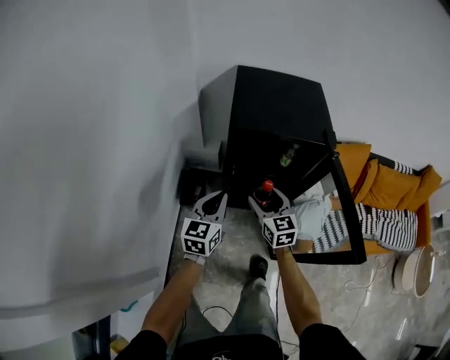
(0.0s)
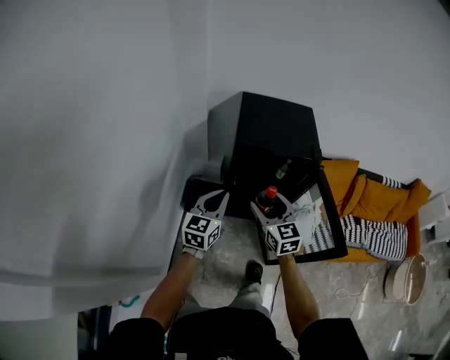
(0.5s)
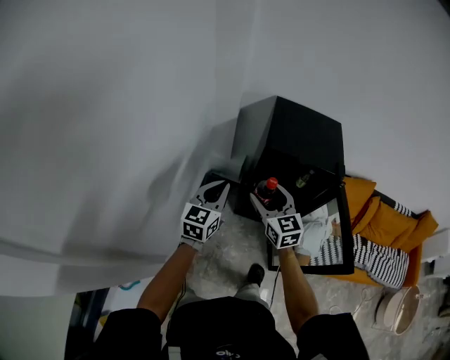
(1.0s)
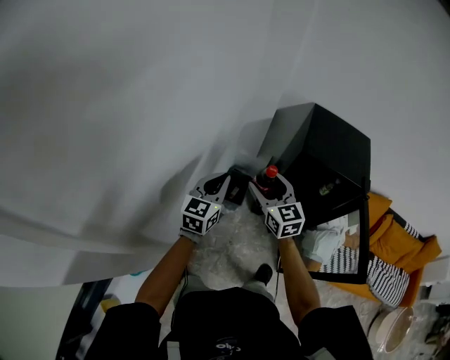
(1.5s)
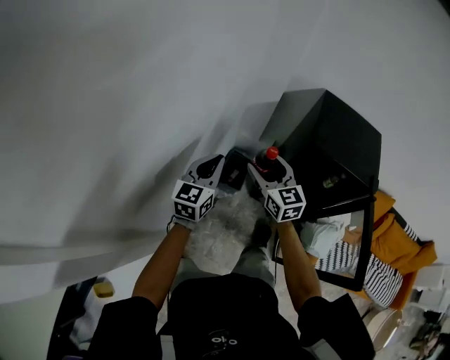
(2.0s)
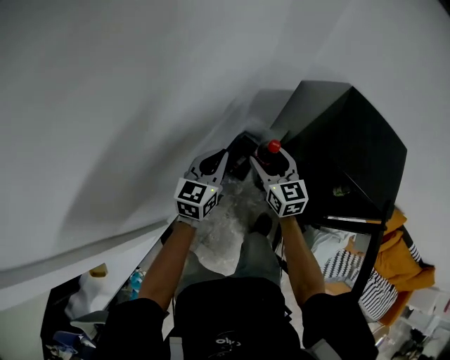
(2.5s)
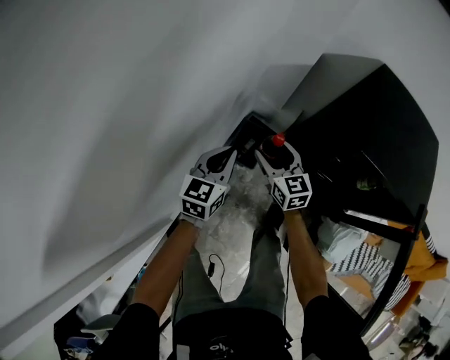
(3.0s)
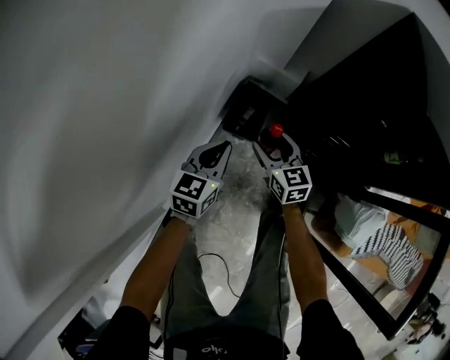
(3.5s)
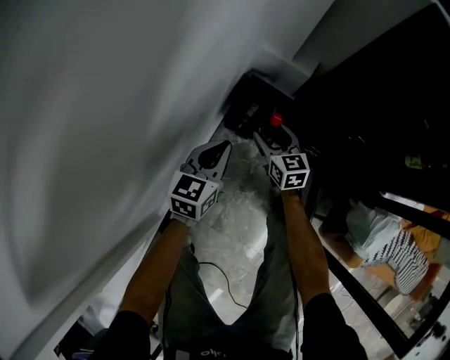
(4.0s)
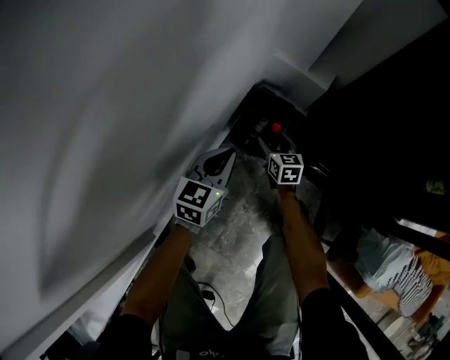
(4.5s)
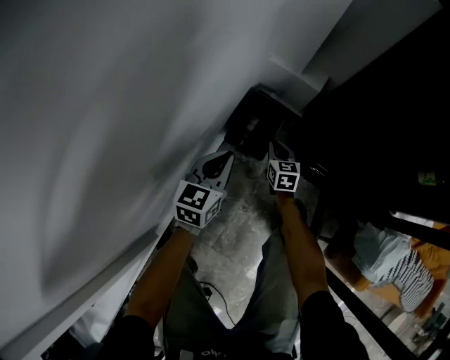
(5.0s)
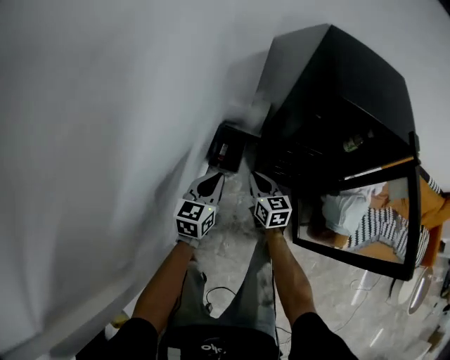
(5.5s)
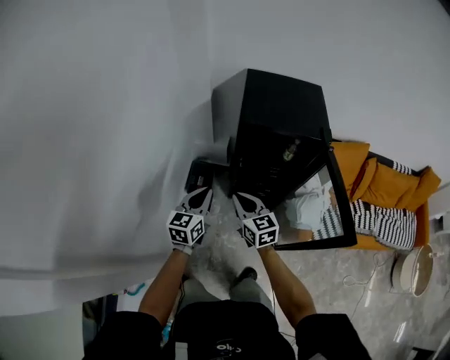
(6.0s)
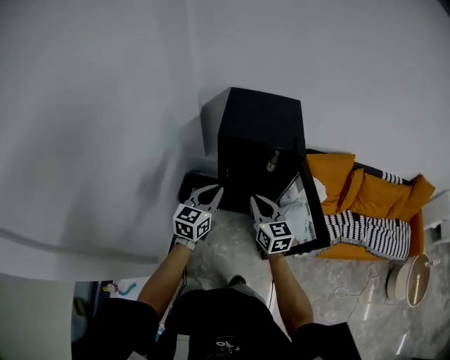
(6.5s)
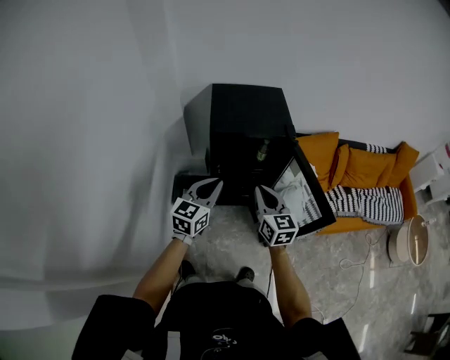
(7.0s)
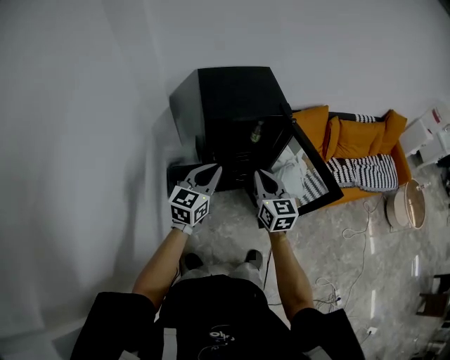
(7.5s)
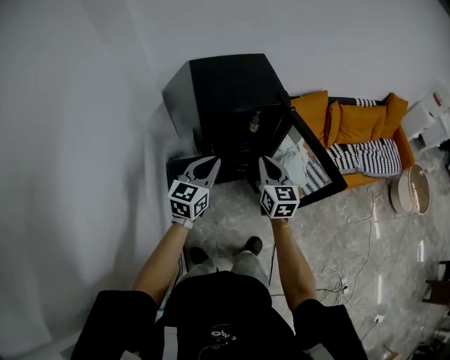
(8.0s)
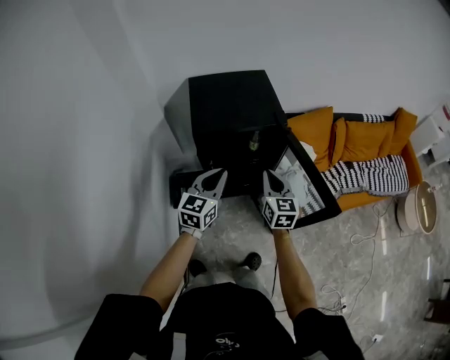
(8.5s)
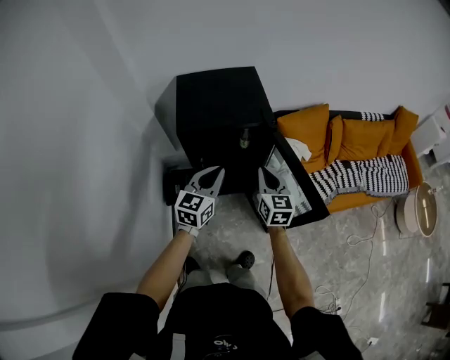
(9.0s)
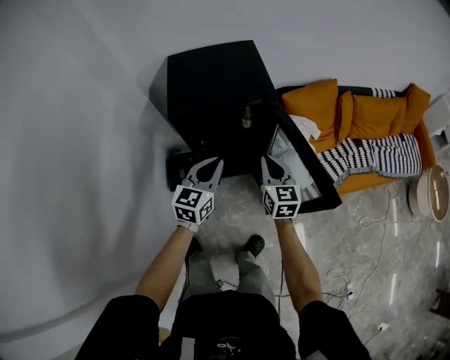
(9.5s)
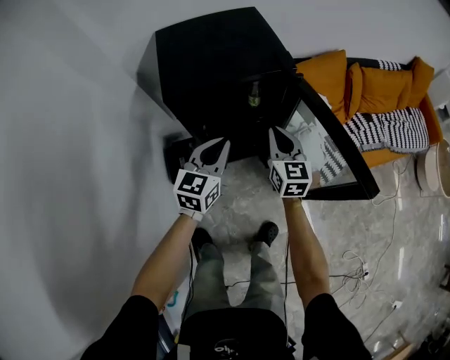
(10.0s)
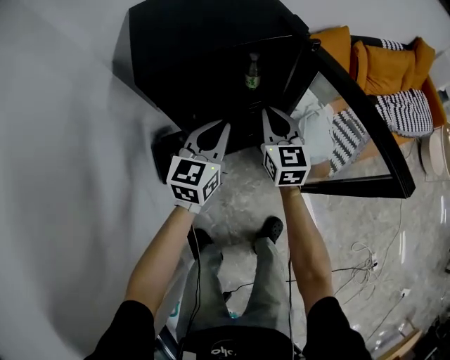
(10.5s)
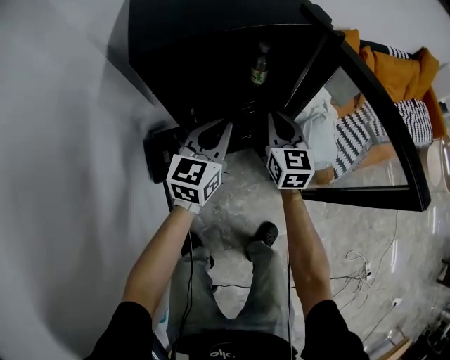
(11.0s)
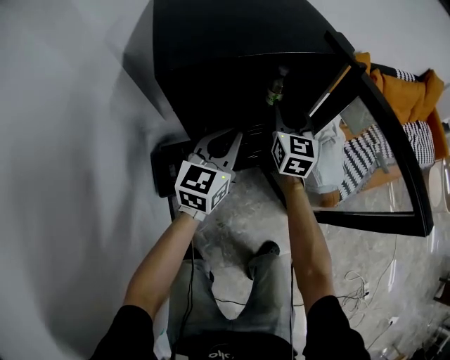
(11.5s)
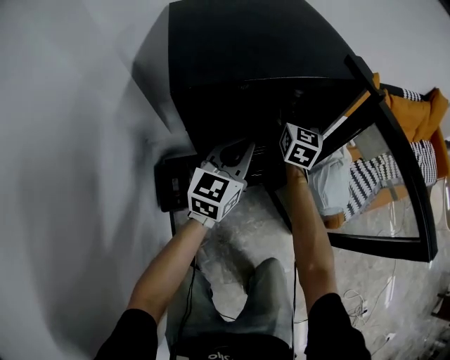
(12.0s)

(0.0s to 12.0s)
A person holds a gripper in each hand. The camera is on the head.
0.0s - 2.0s: Both grippers move to the left and upward, some 30 cm. The right gripper swivels roughly 30 degrees.
2.0s - 4.0s: Both grippers travel together downward, roughly 50 cm.
4.0s - 6.0s: The left gripper shifts about 40 cm upward, while the right gripper shifts approximately 50 cm upward and backward, and closes up.
6.0s - 8.0s: The right gripper changes place by roughly 15 cm, and swivels some 40 degrees, while the left gripper ends up about 15 cm from where it was, and swivels approximately 30 degrees.
8.0s - 10.0s: The two grippers go roughly 20 cm downward, forward and to the right.
10.0s - 12.0s: The left gripper shifts approximately 20 cm downward and forward. The right gripper travels forward and downward by some 25 cm, and opens up.

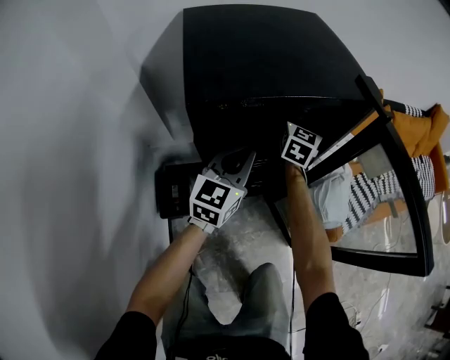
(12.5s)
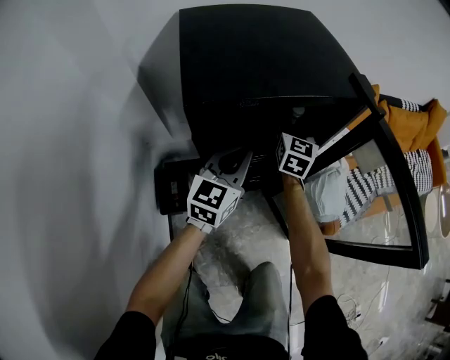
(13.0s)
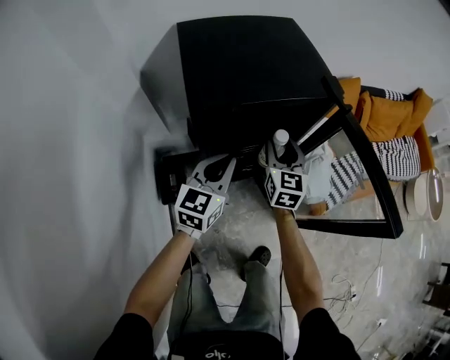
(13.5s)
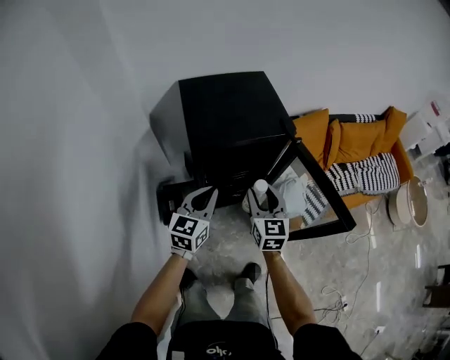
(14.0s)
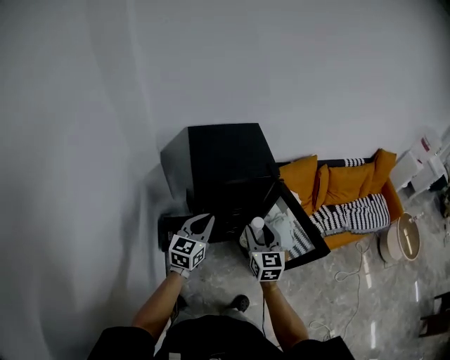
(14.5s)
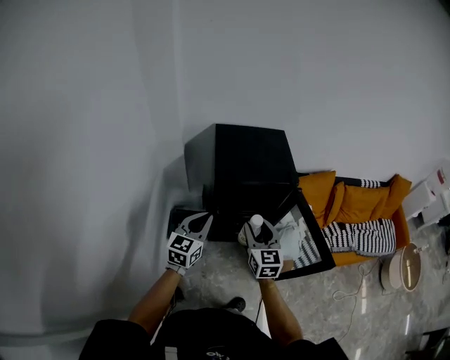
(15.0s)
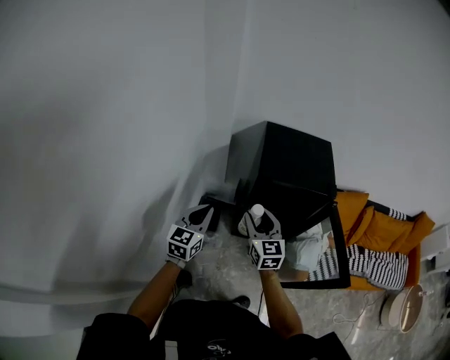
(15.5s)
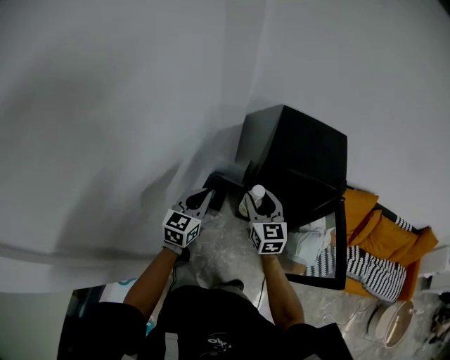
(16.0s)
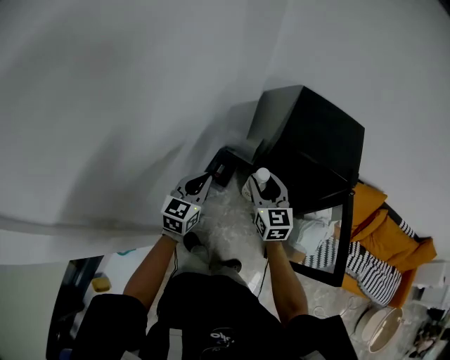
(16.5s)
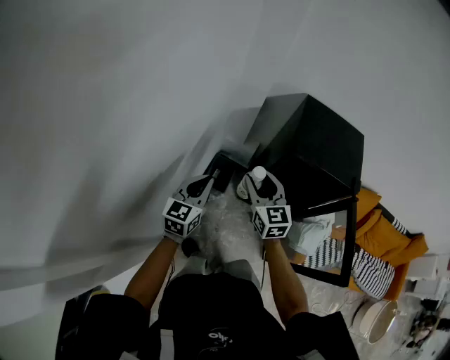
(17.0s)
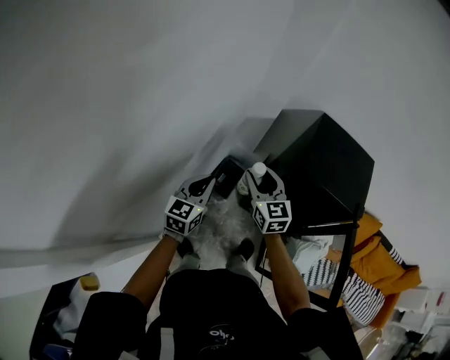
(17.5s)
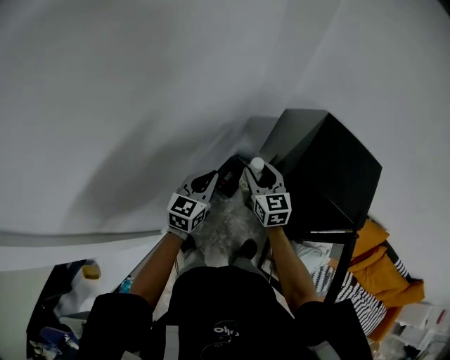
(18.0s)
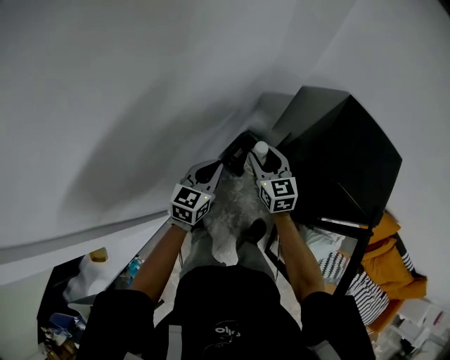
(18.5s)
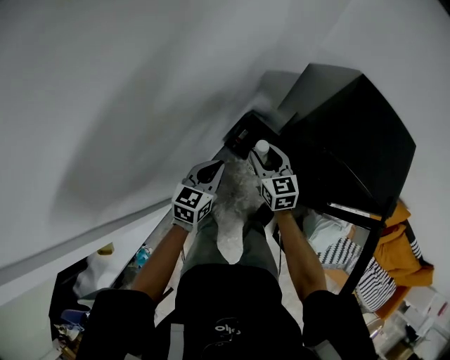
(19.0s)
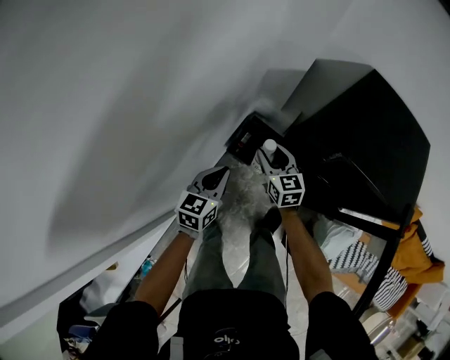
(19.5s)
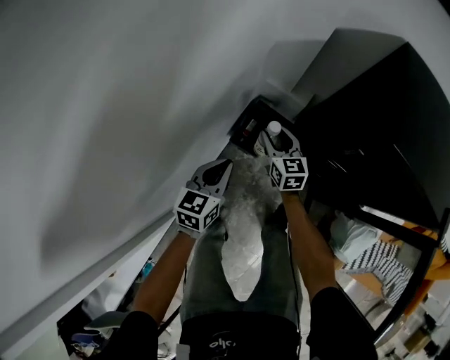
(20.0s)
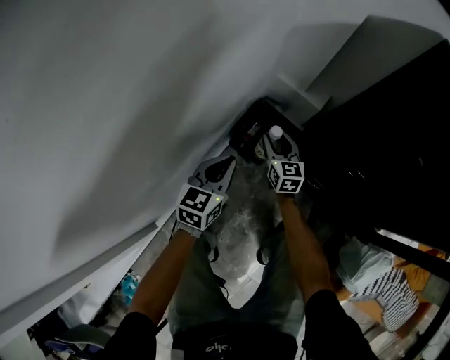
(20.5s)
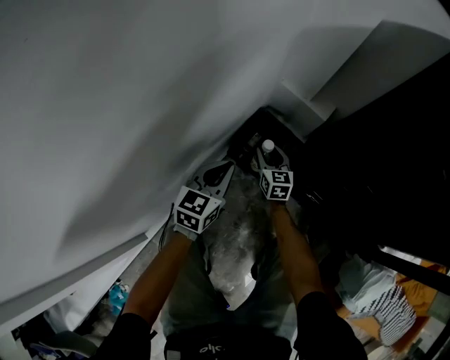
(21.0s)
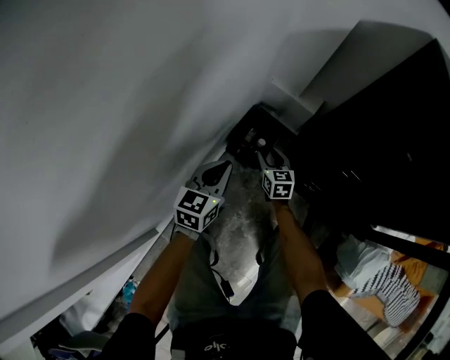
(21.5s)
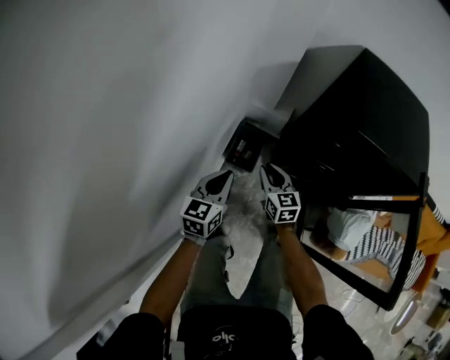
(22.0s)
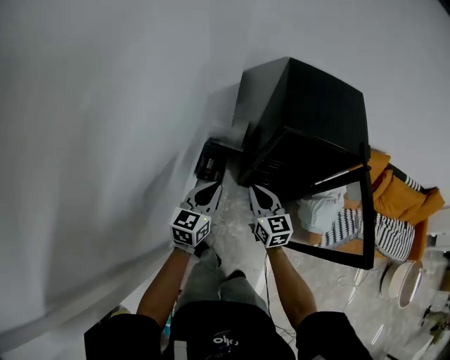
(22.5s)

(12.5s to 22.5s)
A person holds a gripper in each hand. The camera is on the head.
12.5s - 14.5s: The left gripper goes approximately 30 cm upward and backward; the right gripper is displaced backward and upward by roughly 50 cm, and rotates roughly 20 degrees.
14.5s - 16.5s: The right gripper changes place by roughly 20 cm, and swivels roughly 40 degrees; the left gripper ends up some 20 cm from where it was, and swivels some 40 degrees.
16.5s - 18.5s: The right gripper moves forward, downward and to the left, some 20 cm; the left gripper goes some 10 cm forward and downward.
18.5s - 20.5s: The grippers both shift downward by roughly 50 cm.
20.5s - 22.5s: The right gripper moves upward and backward, approximately 50 cm, and closes. Meanwhile the left gripper is displaced upward by approximately 35 cm, and turns by about 20 degrees.

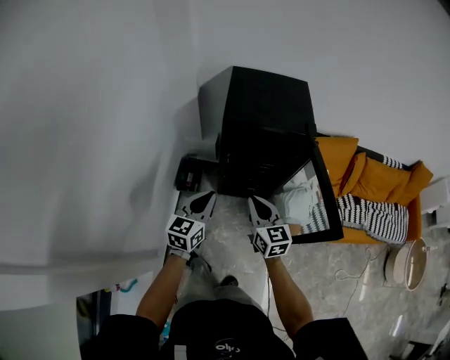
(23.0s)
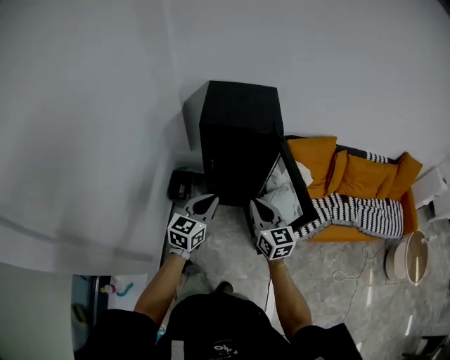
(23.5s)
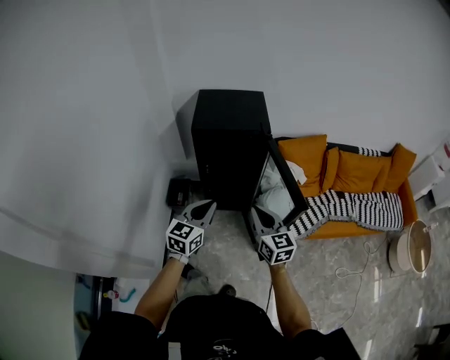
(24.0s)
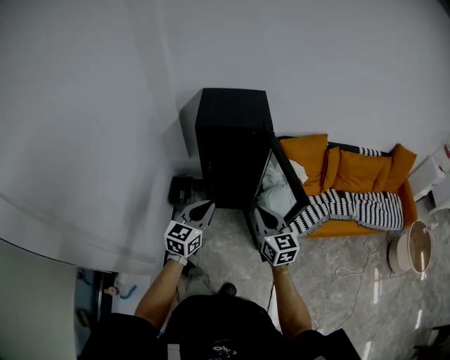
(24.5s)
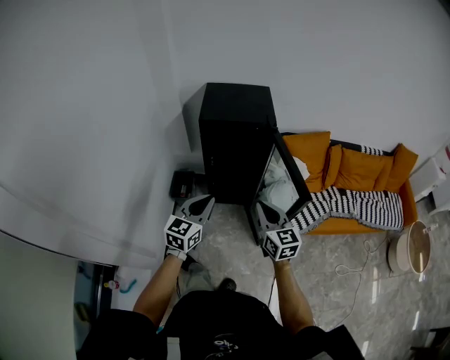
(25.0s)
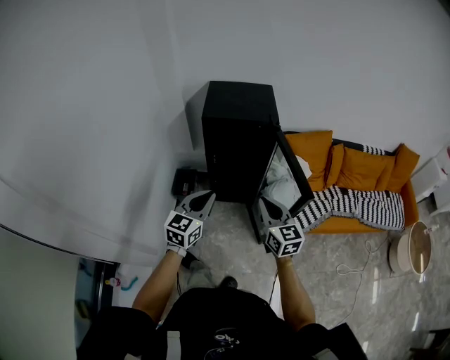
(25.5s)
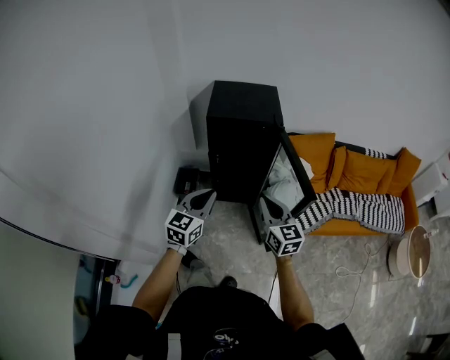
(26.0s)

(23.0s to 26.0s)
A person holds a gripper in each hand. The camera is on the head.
23.0s - 24.5s: Both grippers travel together backward, to the right and upward, approximately 20 cm.
24.5s - 26.0s: The grippers stay close to where they were, moving slightly.

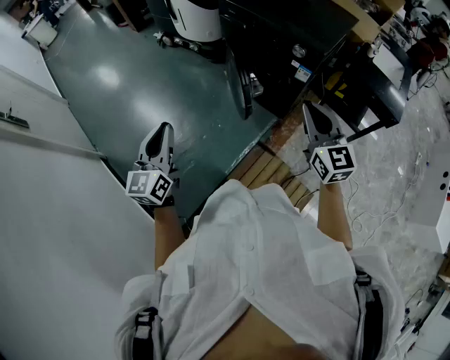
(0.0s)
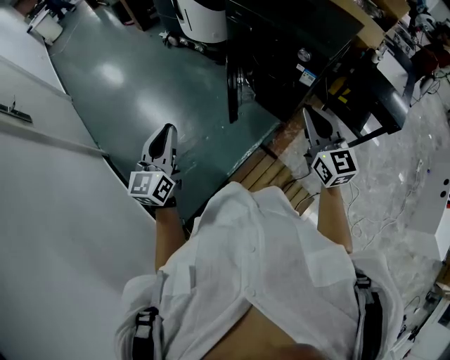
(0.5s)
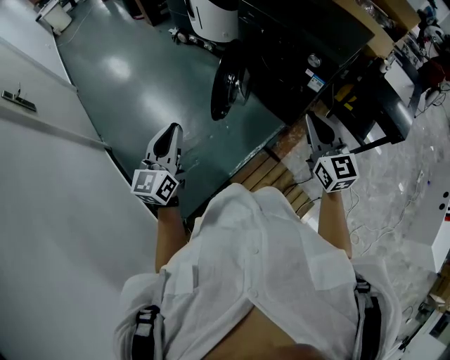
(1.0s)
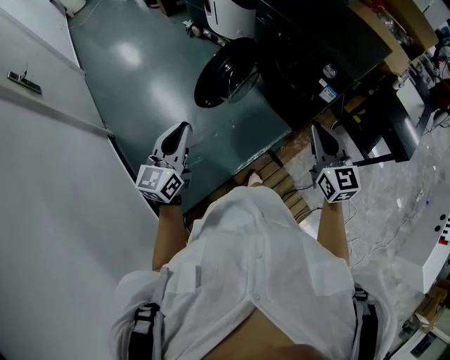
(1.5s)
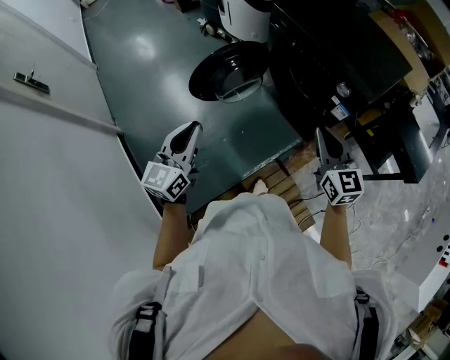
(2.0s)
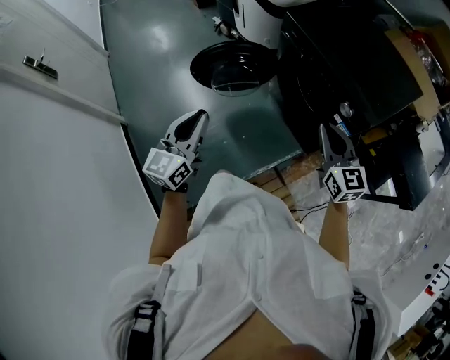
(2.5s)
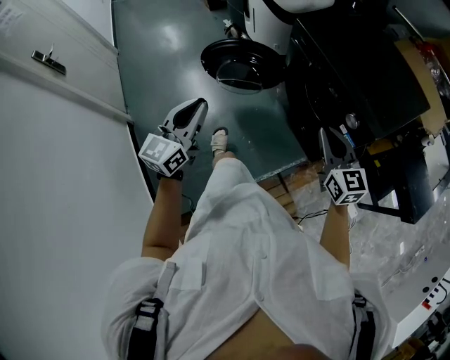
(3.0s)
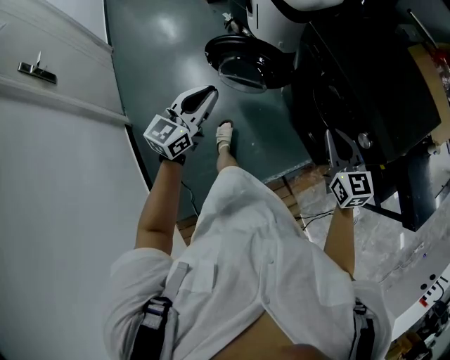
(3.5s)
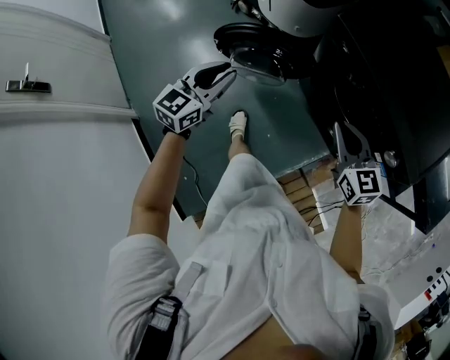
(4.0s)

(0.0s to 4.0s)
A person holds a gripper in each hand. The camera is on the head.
0.0s - 2.0s: The two grippers go some 10 cm forward.
2.0s - 4.0s: The two grippers go approximately 30 cm forward. The left gripper changes its angle by approximately 20 degrees.
